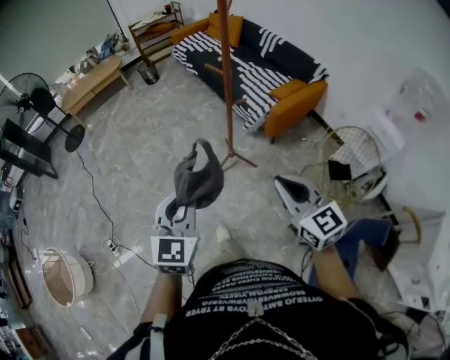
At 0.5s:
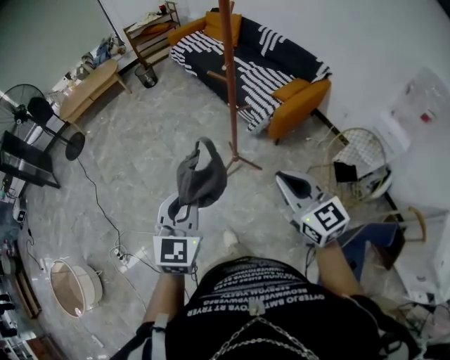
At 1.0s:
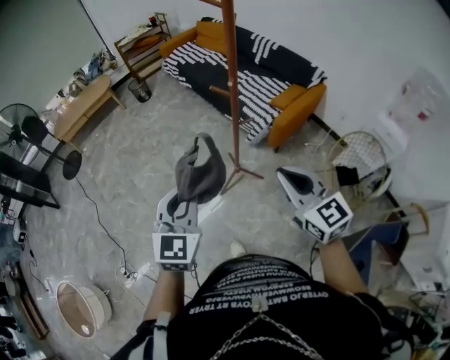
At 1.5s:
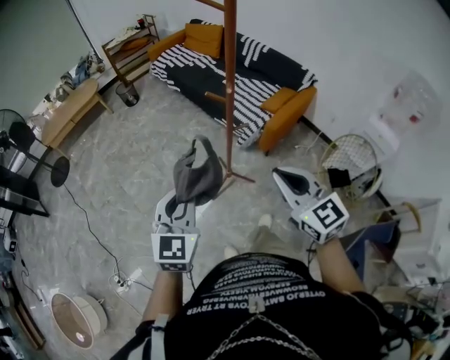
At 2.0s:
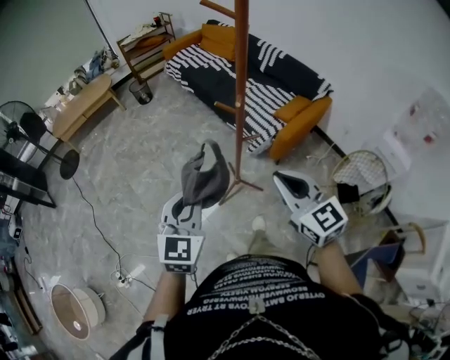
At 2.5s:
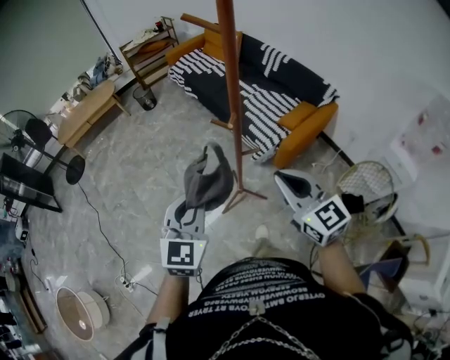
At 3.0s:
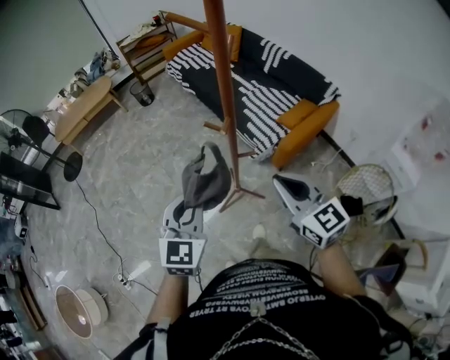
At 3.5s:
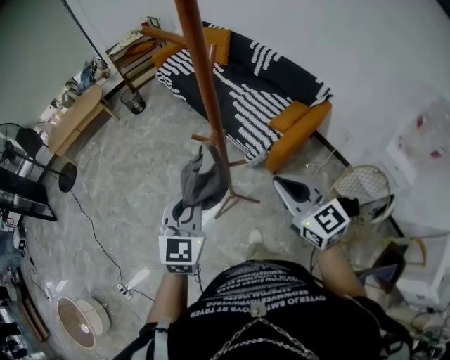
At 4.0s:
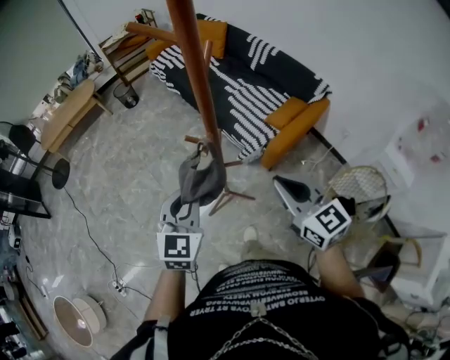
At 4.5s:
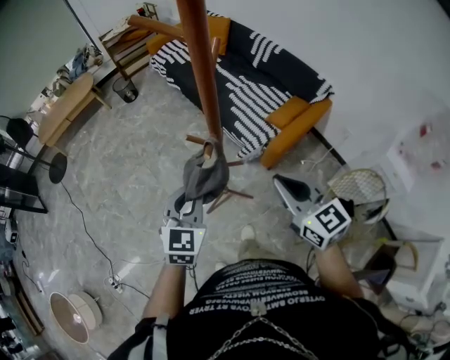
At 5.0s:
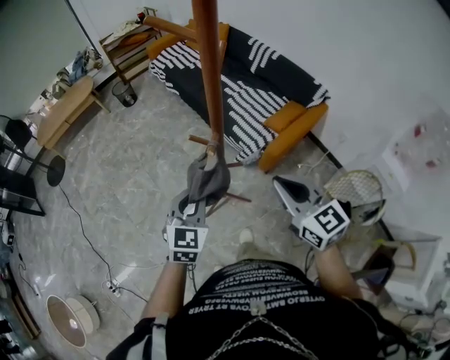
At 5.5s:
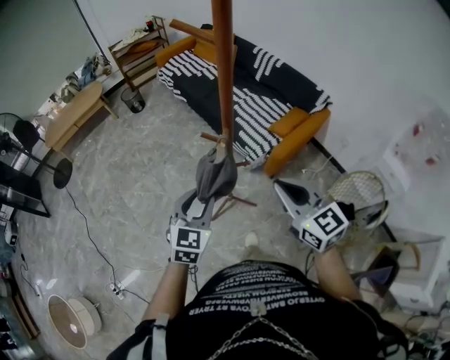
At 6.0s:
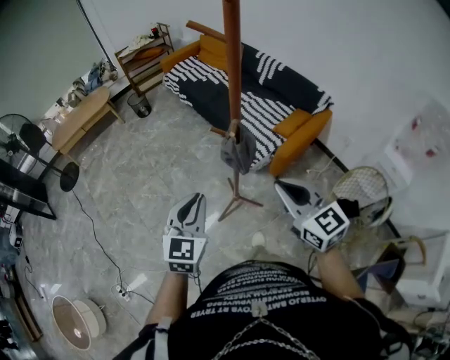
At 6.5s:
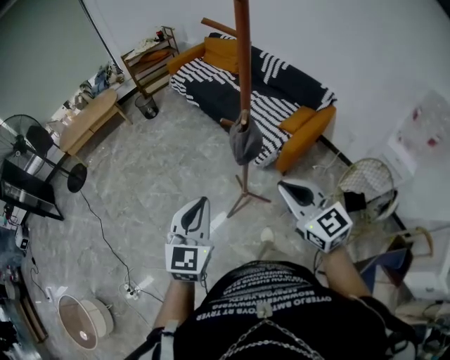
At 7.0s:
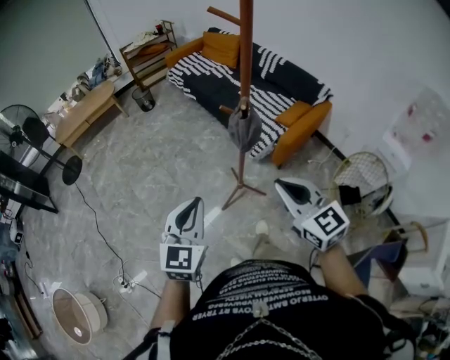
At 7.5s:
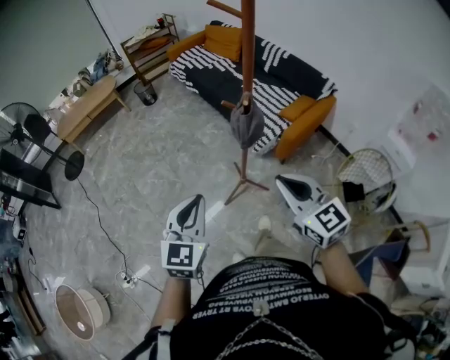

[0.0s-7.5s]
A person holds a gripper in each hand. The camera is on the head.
0.0s to 2.0s: Both grippers travel together forward, roughly 20 cm.
2.0s to 4.0s: Both grippers move forward and to the right, roughly 20 cm.
4.0s to 5.5s: The left gripper changes place by some 5 cm, and opens; the right gripper ends up approximately 5 cm from where it was.
5.5s to 7.5s: The right gripper goes approximately 15 cm backward and to the left. Meanwhile the left gripper is displaced backward, to the left and upward by roughly 20 cm, and closes.

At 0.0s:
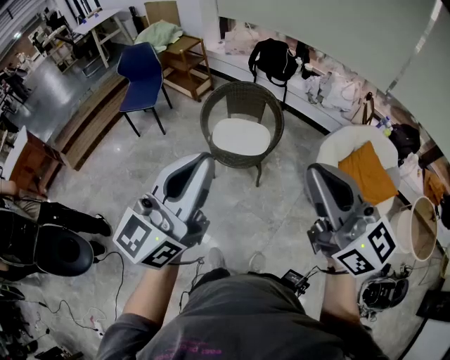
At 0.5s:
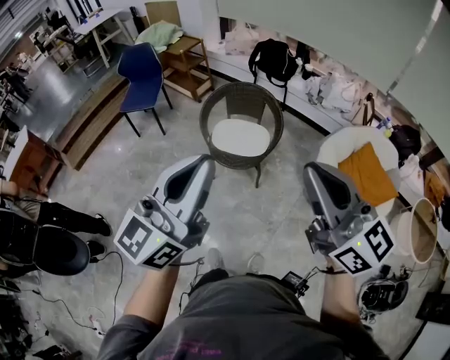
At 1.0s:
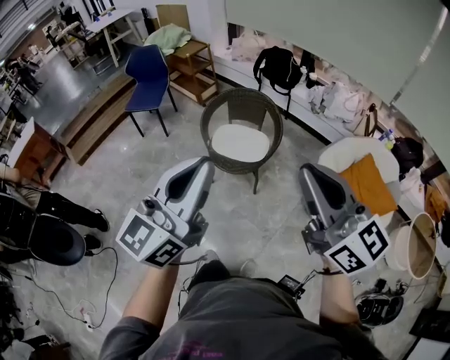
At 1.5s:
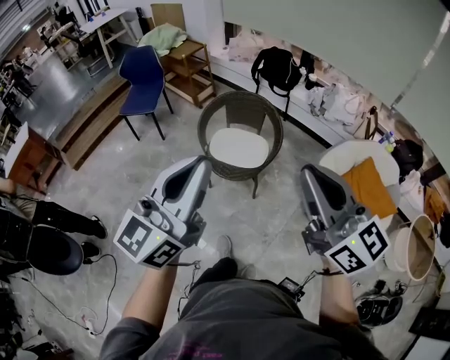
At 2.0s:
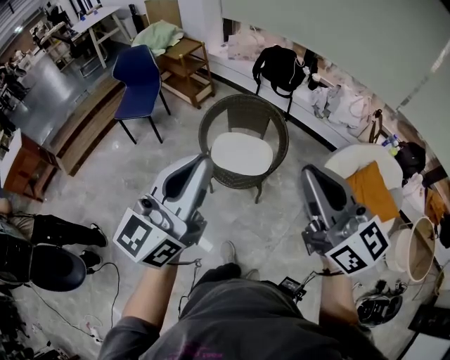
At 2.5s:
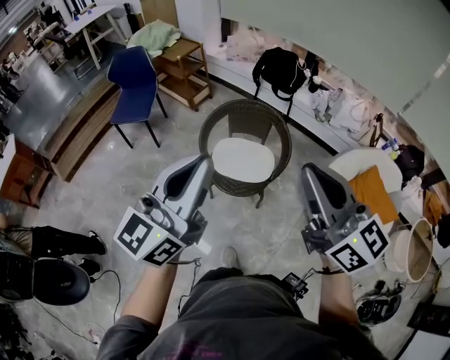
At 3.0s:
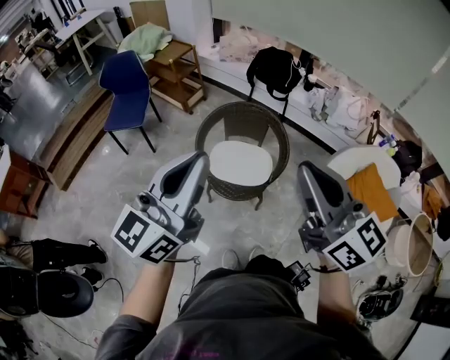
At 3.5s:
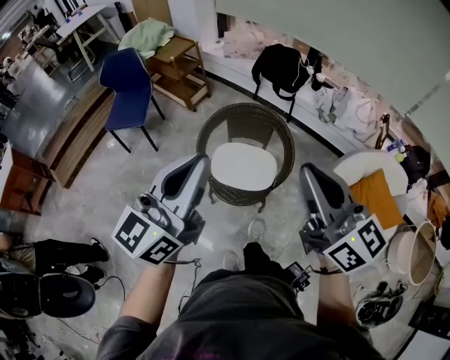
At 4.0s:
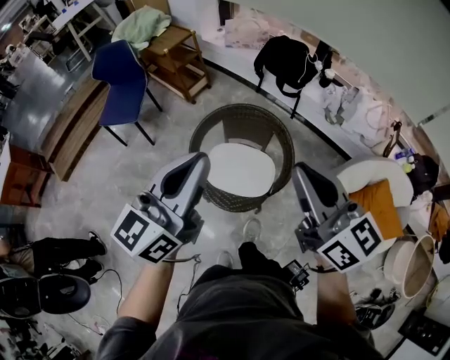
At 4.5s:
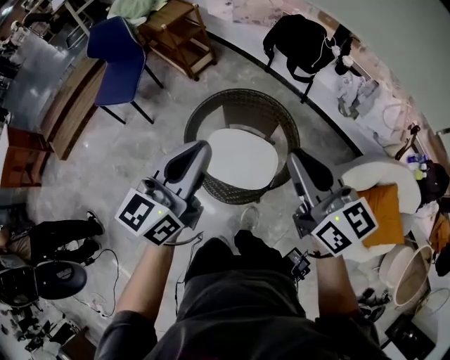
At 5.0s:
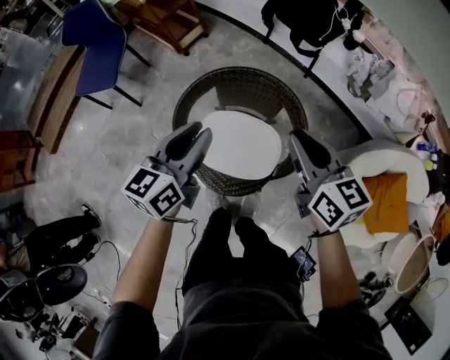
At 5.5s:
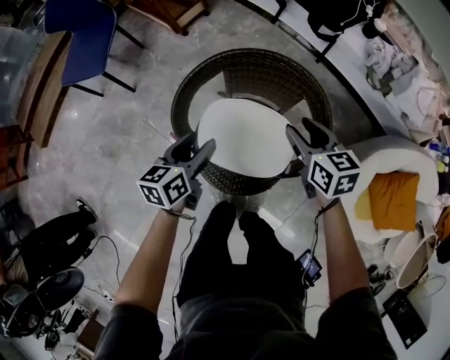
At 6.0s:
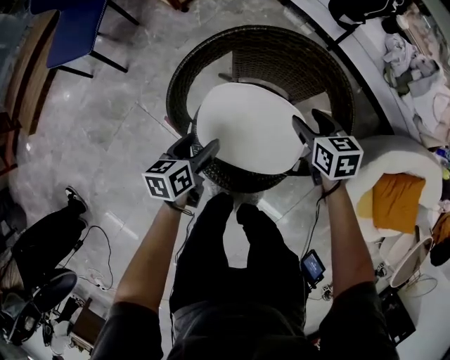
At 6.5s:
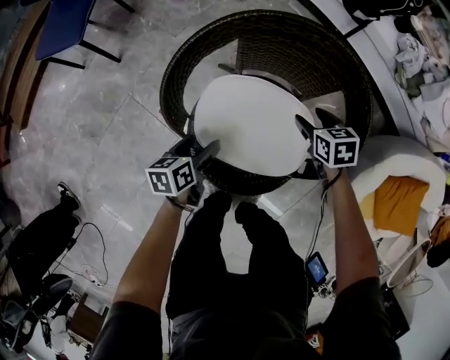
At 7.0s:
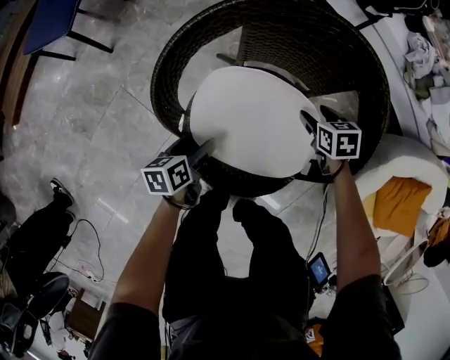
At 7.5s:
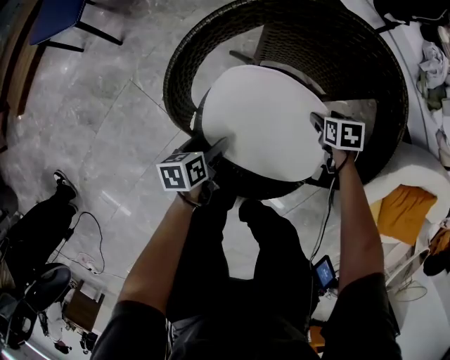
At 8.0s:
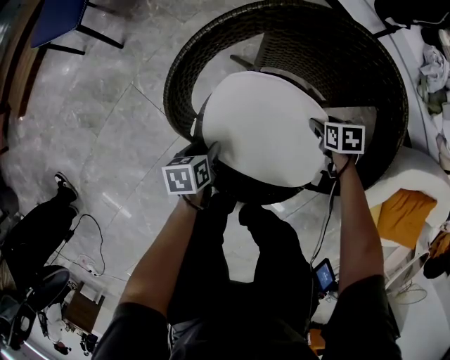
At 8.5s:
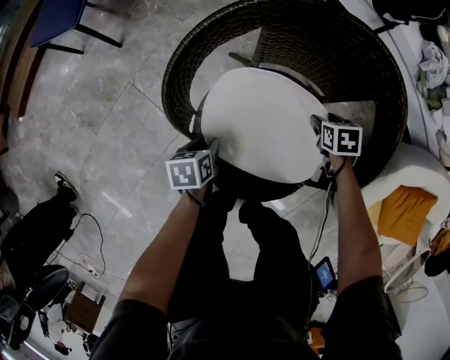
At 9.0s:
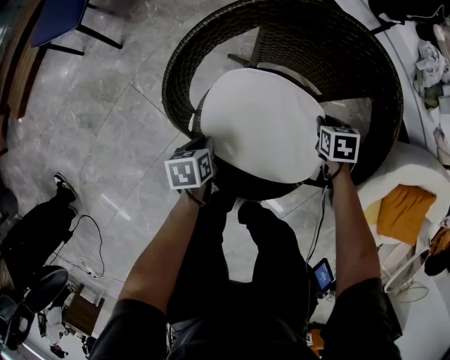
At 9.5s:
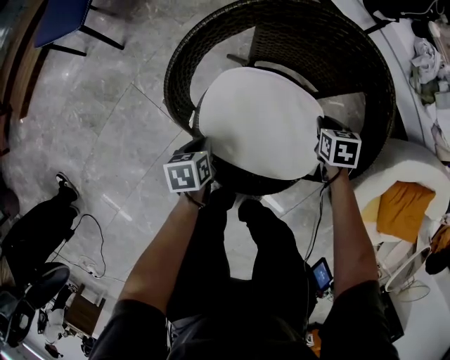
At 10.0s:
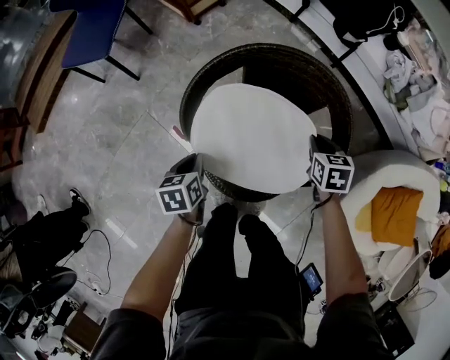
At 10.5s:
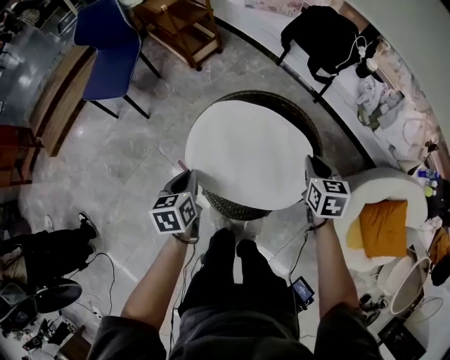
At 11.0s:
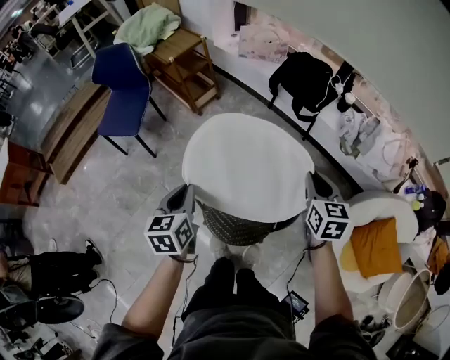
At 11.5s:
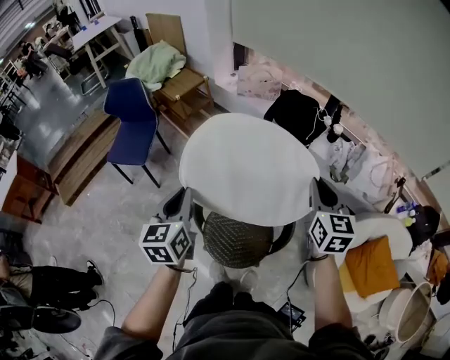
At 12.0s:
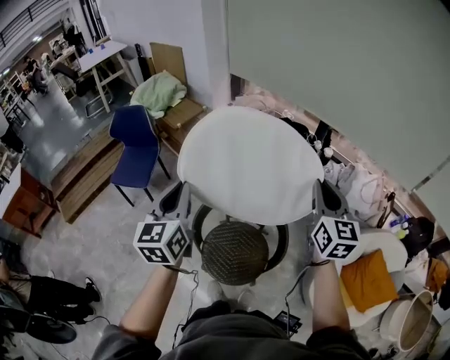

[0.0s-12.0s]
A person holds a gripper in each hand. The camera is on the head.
0.0s to 2.0s: Both grippers travel together forward, some 15 cm.
2.0s to 4.0s: The two grippers go about 30 cm forward.
4.0s to 6.0s: The right gripper moves downward and forward, approximately 60 cm, tips its fingers downward by approximately 50 degrees, and opens its fingers. The left gripper goes about 60 cm downward, tips its fingers downward by some 40 degrees, and opens up.
6.0s to 8.0s: The two grippers go roughly 20 cm downward. The left gripper rotates about 20 degrees, and closes. The right gripper rotates some 30 degrees.
8.0s to 10.0s: The two grippers go roughly 20 cm upward. The right gripper changes its angle by roughly 20 degrees, and closes up, while the left gripper closes its fingers.
10.0s to 12.0s: The grippers both shift upward by roughly 60 cm. The right gripper angles its fingers upward, by about 50 degrees. The left gripper tips its fingers upward by roughly 50 degrees.

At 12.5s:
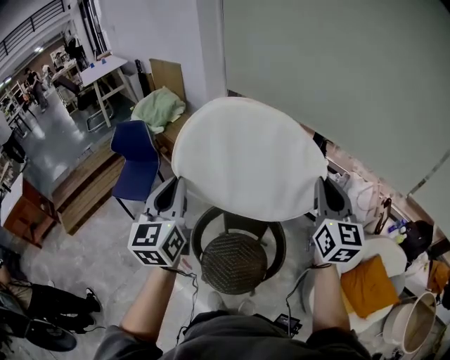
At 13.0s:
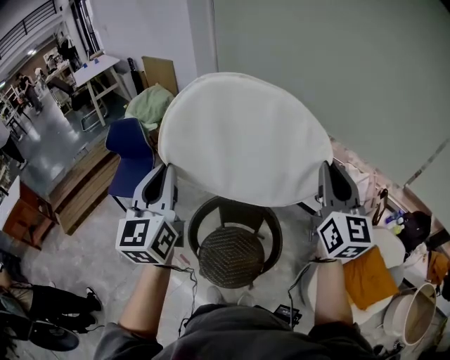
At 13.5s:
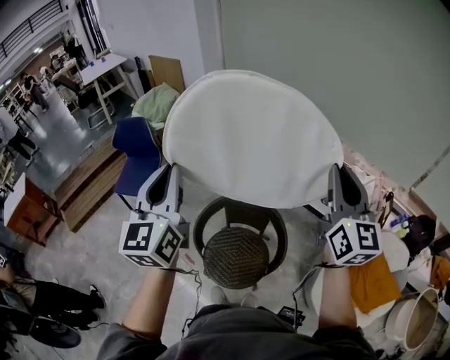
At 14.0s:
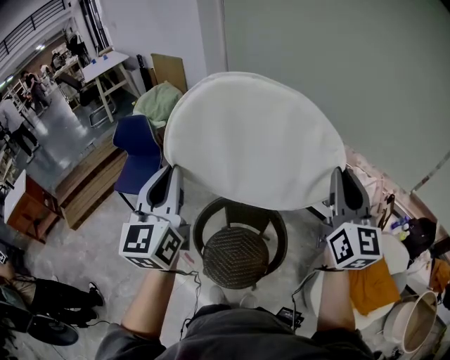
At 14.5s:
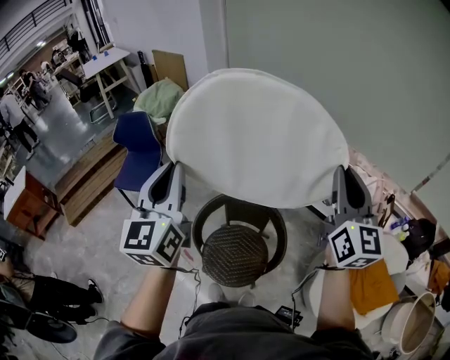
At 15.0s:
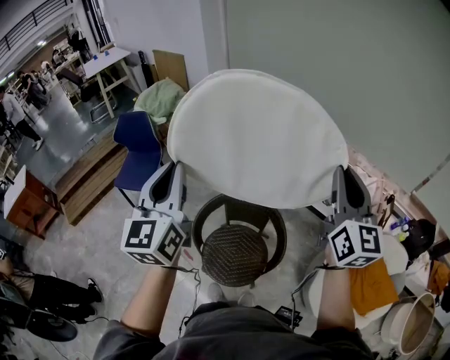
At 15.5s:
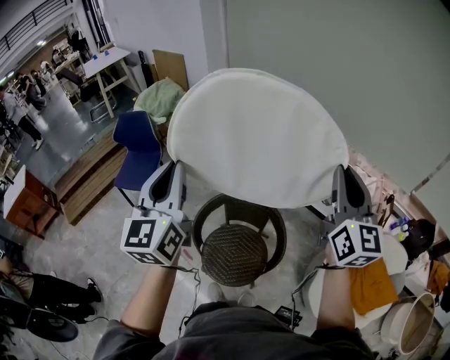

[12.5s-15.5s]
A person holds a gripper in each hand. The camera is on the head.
12.5s to 14.0s: The two grippers go some 5 cm upward.
14.0s to 15.5s: Both grippers stay put.

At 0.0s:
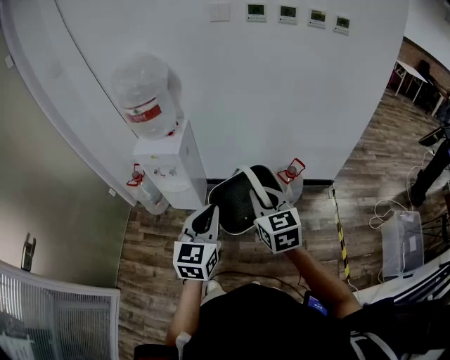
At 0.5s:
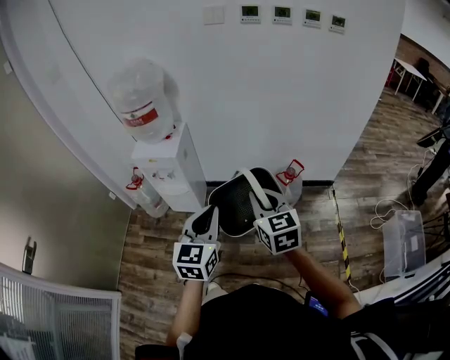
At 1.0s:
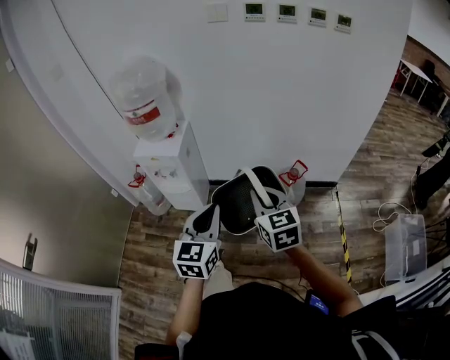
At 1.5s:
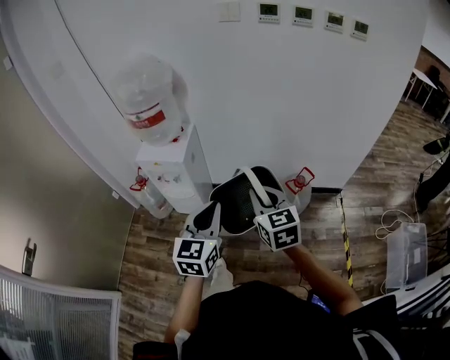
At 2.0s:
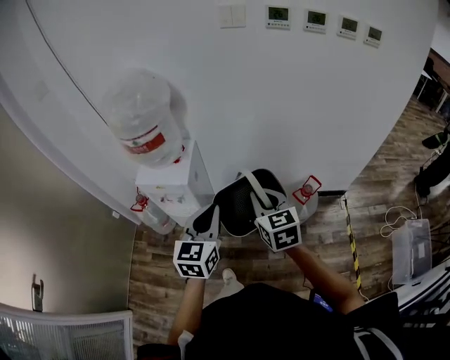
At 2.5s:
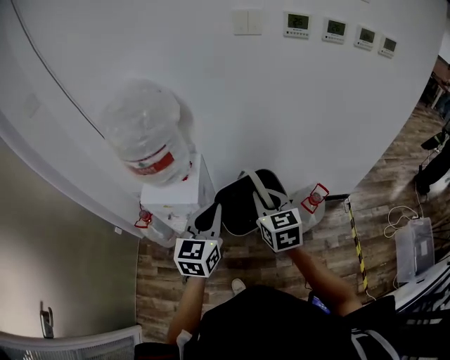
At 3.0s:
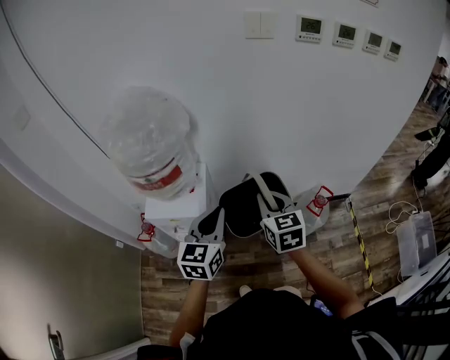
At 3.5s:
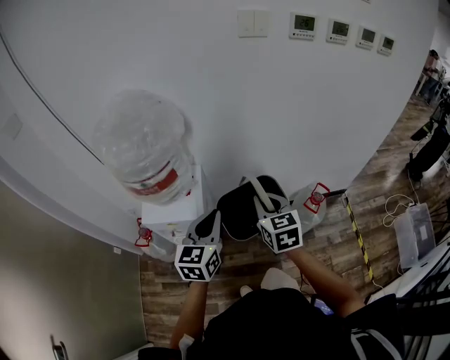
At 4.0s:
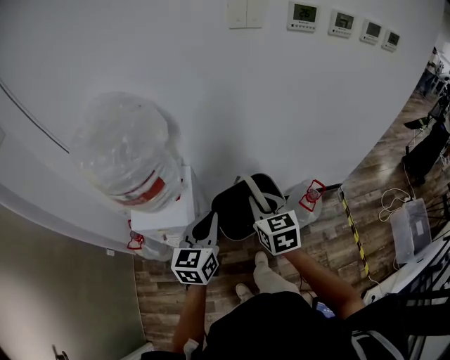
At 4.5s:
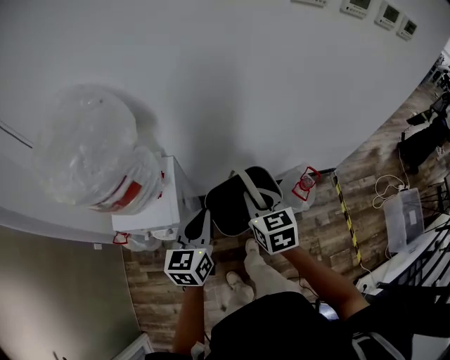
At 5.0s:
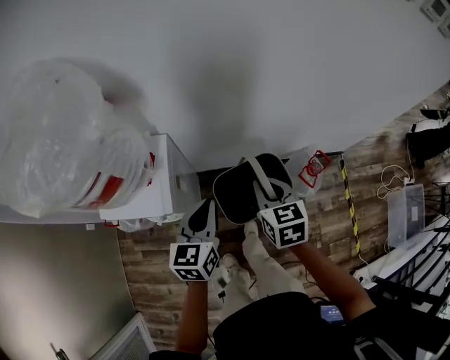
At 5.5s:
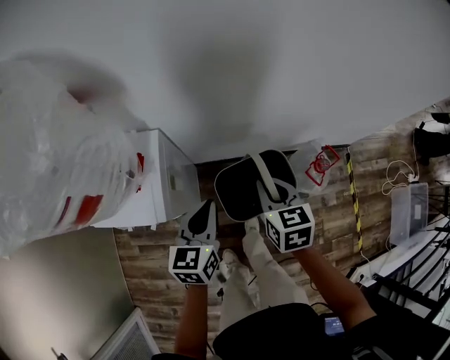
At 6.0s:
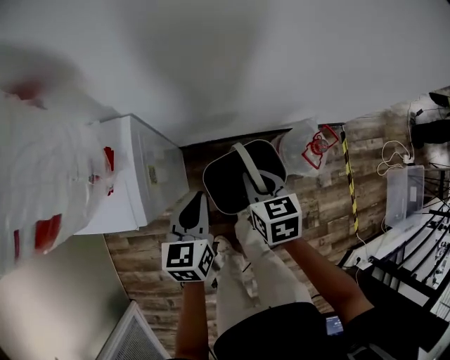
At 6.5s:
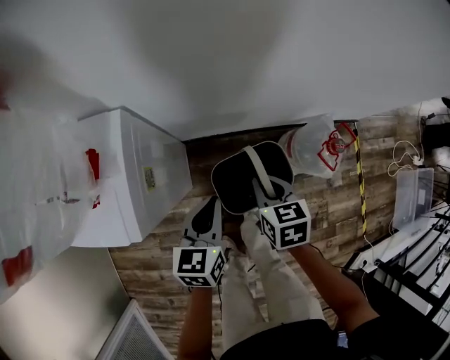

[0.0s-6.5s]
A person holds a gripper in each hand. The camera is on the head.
0.0s to 2.0s: Both grippers move forward, about 20 cm.
2.0s to 4.5s: The grippers both shift forward and downward by some 20 cm.
4.5s to 6.5s: The grippers both shift downward by approximately 30 cm. The right gripper swivels about 20 degrees.
